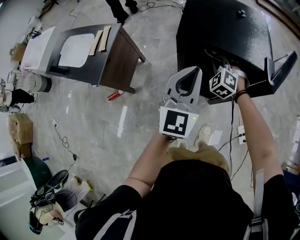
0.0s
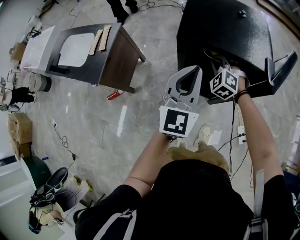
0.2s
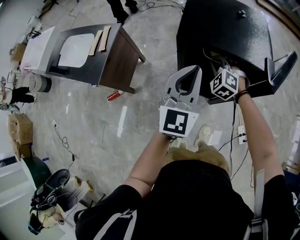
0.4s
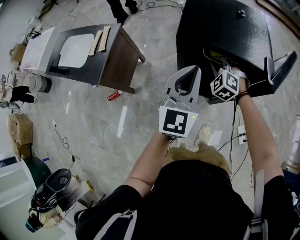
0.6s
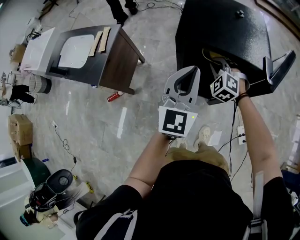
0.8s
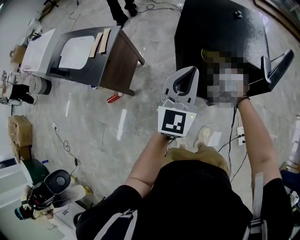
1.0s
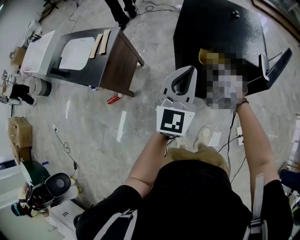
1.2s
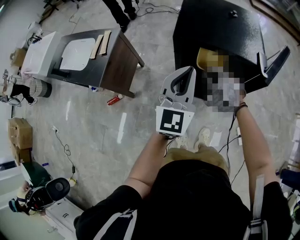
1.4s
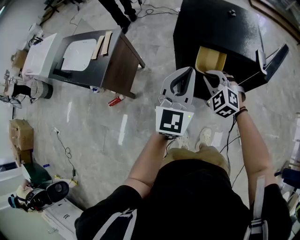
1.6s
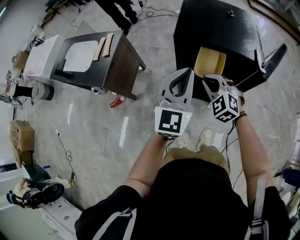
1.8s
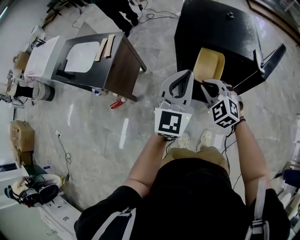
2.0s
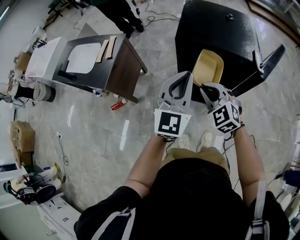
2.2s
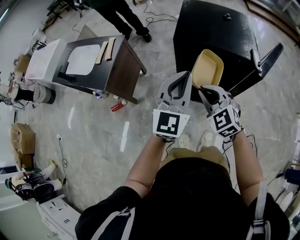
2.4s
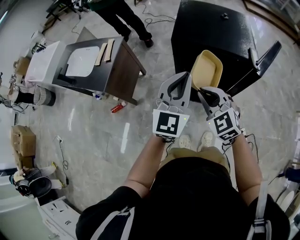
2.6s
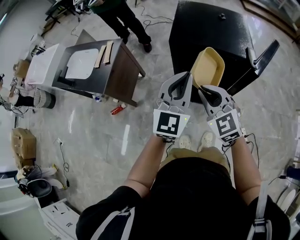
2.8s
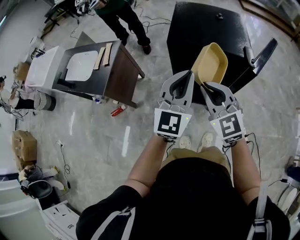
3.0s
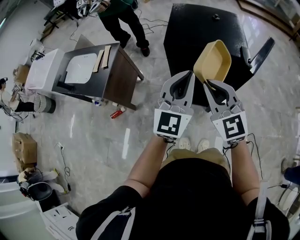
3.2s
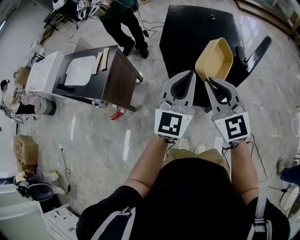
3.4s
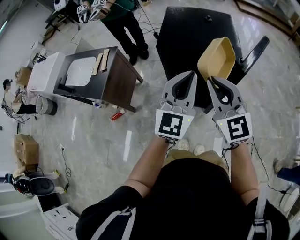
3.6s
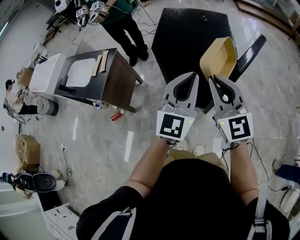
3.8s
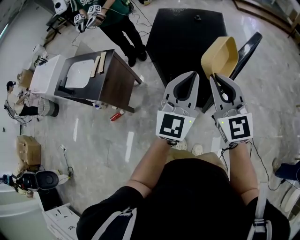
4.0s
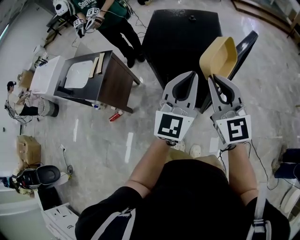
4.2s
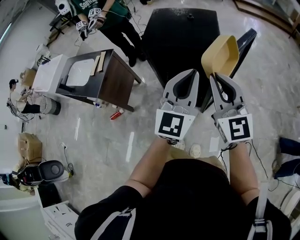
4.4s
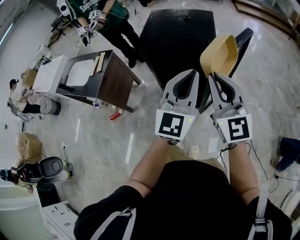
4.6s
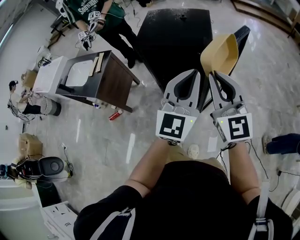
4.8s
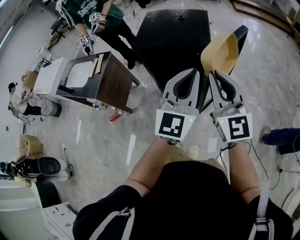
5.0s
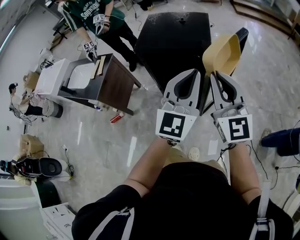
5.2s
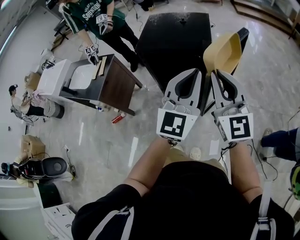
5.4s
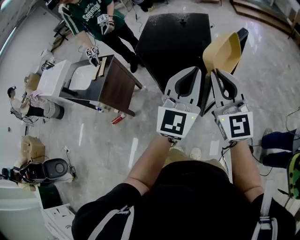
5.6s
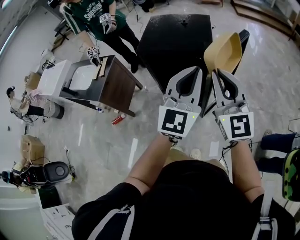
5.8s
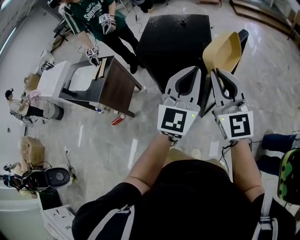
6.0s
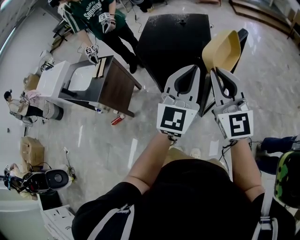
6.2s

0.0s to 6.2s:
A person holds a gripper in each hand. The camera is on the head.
0.0s to 1.6s: The right gripper is displaced backward by approximately 15 cm.
1.6s to 3.2s: The right gripper moves upward and backward, about 20 cm, and swivels roughly 40 degrees; the left gripper shifts by about 5 cm.
3.2s to 4.6s: Both grippers move to the right, approximately 20 cm.
4.6s to 6.2s: There are only small adjustments of the grippers.

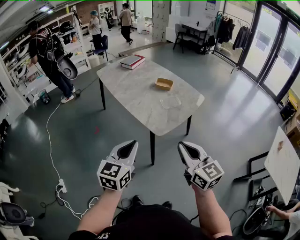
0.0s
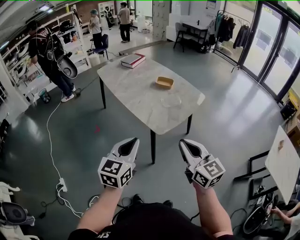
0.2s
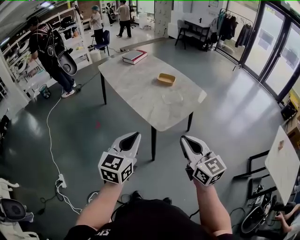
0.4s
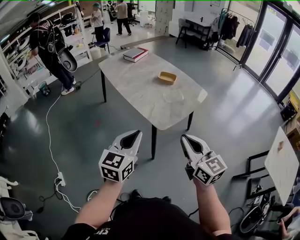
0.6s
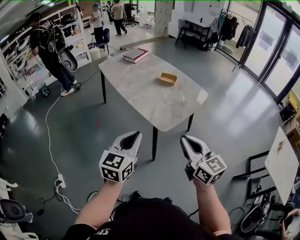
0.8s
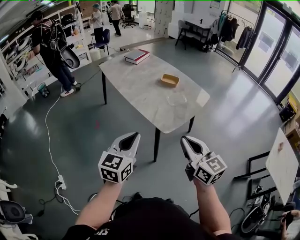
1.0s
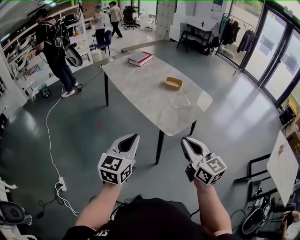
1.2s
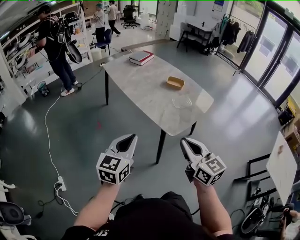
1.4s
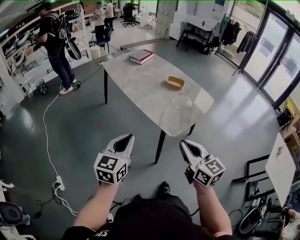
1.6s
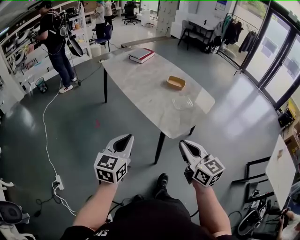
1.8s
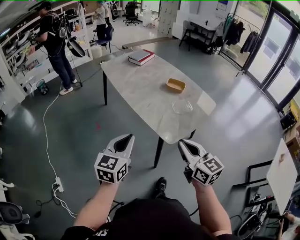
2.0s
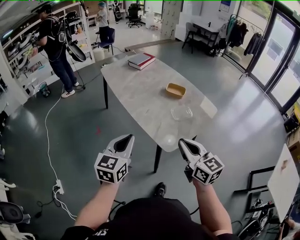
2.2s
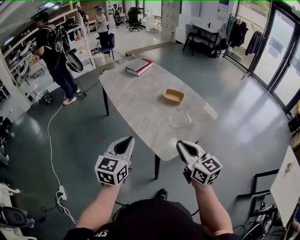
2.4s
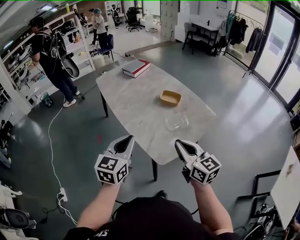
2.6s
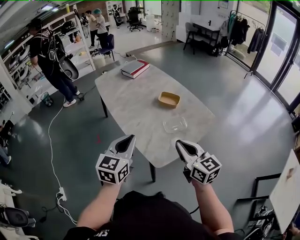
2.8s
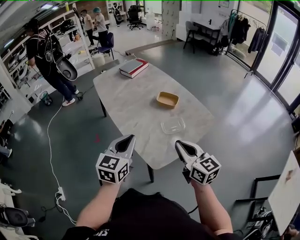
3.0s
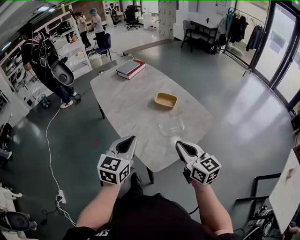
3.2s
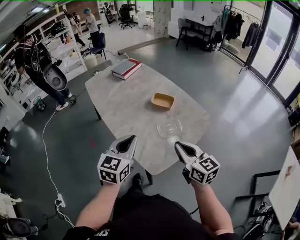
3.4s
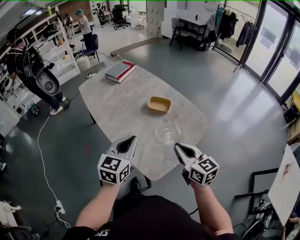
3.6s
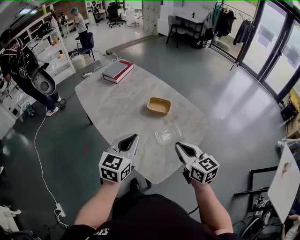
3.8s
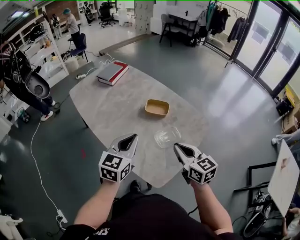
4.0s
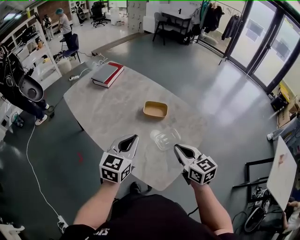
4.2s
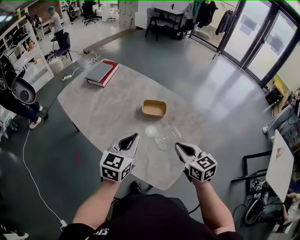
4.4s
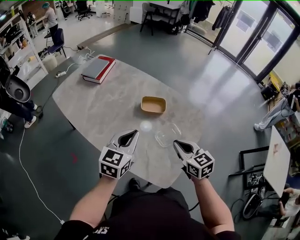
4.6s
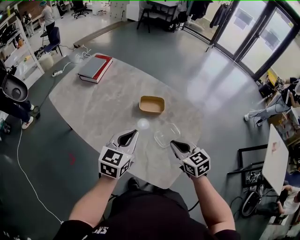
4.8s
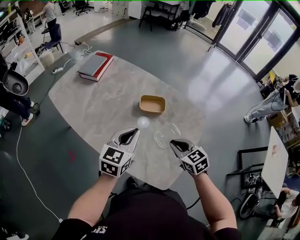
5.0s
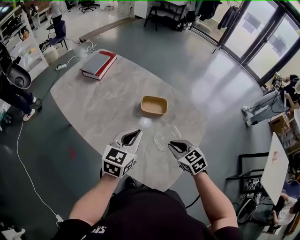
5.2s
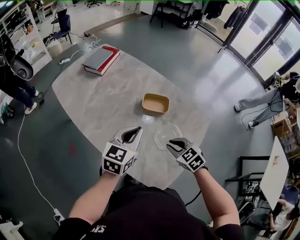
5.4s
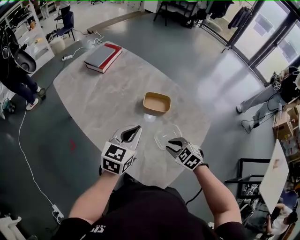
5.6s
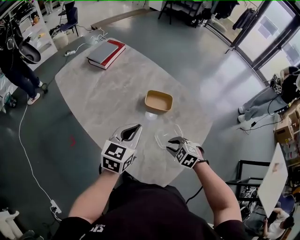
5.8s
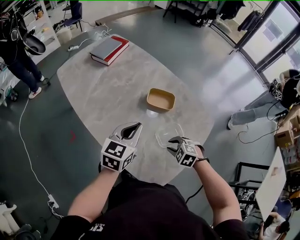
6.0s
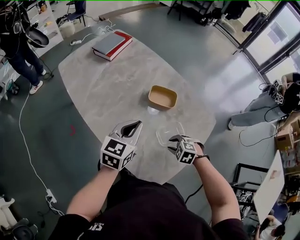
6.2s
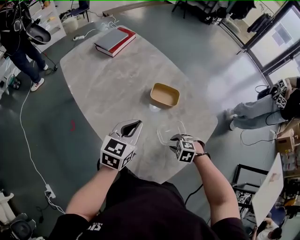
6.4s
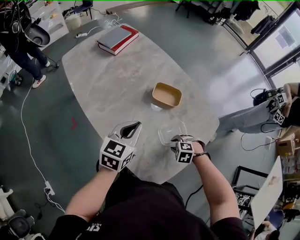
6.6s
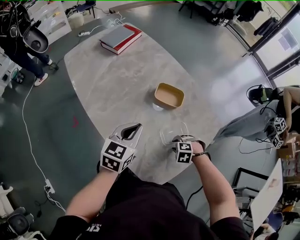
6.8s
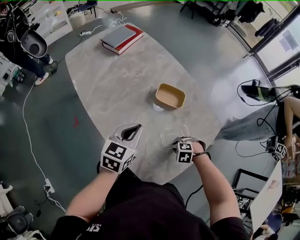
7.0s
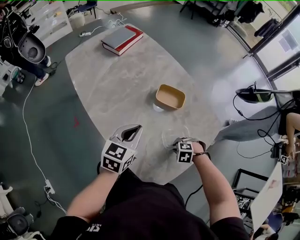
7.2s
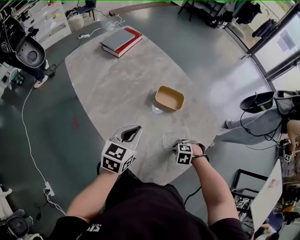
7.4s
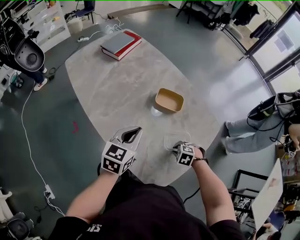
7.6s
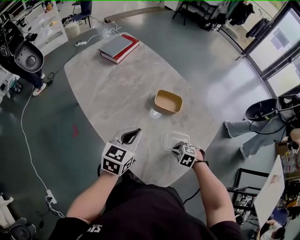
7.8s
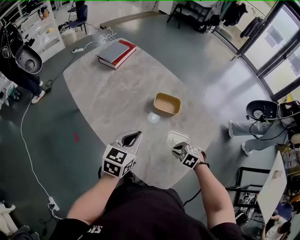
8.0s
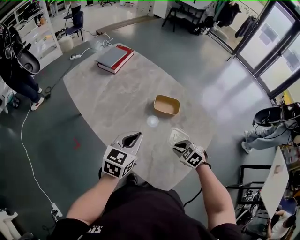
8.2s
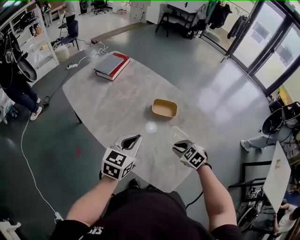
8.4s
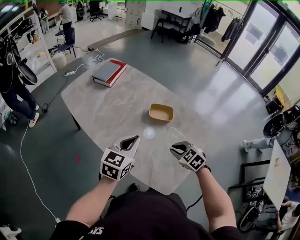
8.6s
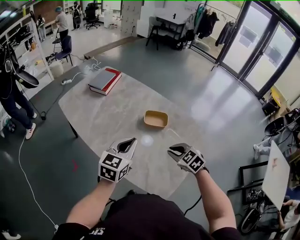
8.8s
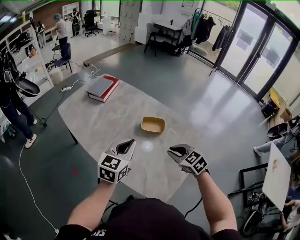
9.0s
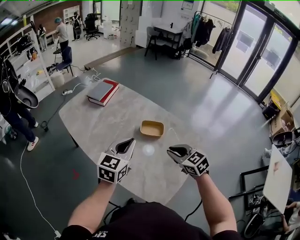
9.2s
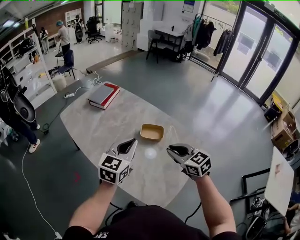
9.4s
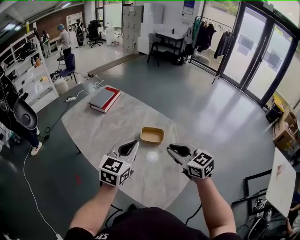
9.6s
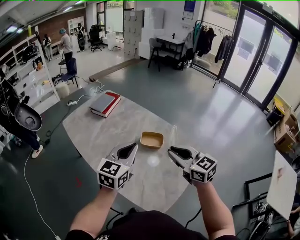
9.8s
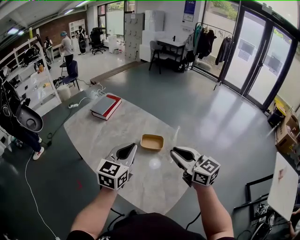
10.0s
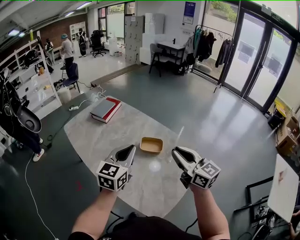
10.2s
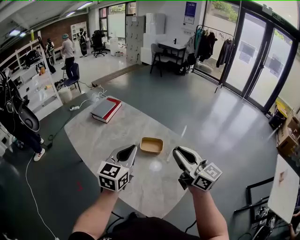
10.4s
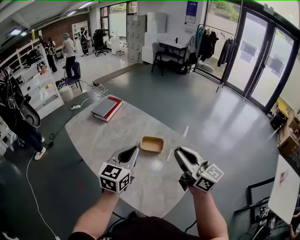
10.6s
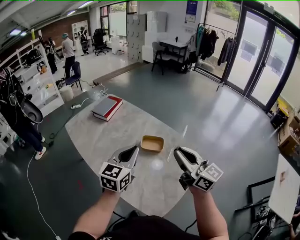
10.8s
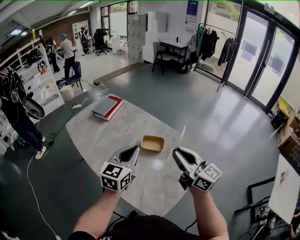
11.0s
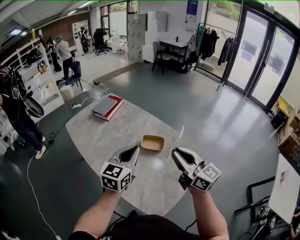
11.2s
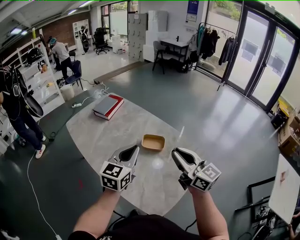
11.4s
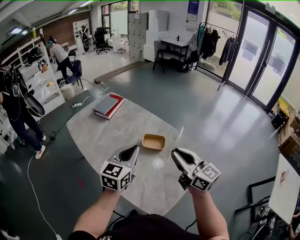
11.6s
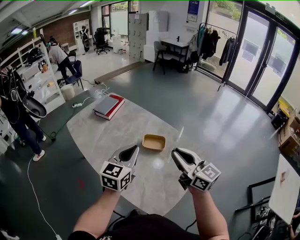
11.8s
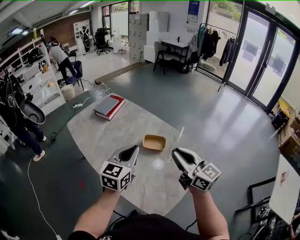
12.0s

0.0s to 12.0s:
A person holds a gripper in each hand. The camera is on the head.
0.0s to 1.6s: The left gripper goes roughly 15 cm to the left and forward. Meanwhile the right gripper is displaced to the left by about 10 cm.
1.6s to 3.0s: Both grippers move forward and to the right, about 25 cm.
3.0s to 4.4s: The right gripper travels forward and downward by about 15 cm, and swivels some 20 degrees. Meanwhile the left gripper travels forward by approximately 20 cm, and rotates approximately 20 degrees.
4.4s to 6.0s: The left gripper shifts about 10 cm forward and downward; the right gripper heads downward, covering roughly 20 cm, tips its fingers downward by some 40 degrees, and opens its fingers.
6.0s to 7.6s: The right gripper moves downward, about 5 cm.
7.6s to 9.0s: The right gripper shifts approximately 20 cm upward, and tilts its fingers approximately 40 degrees upward. The left gripper is displaced upward by some 10 cm.
9.0s to 10.4s: The right gripper heads upward, covering some 20 cm, and angles its fingers upward, by roughly 50 degrees; the left gripper is displaced upward by about 10 cm.
10.4s to 12.0s: The grippers move only a little.

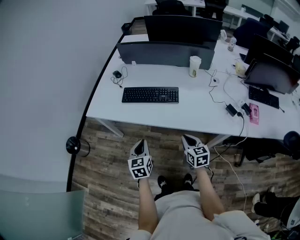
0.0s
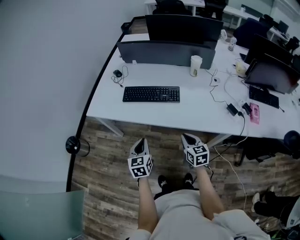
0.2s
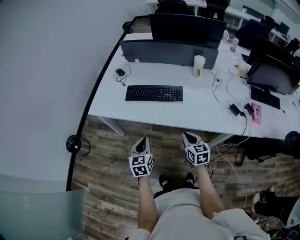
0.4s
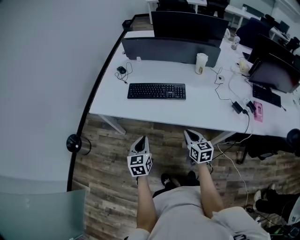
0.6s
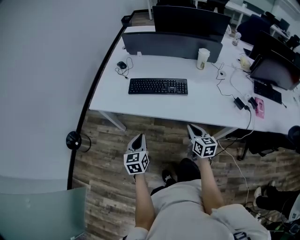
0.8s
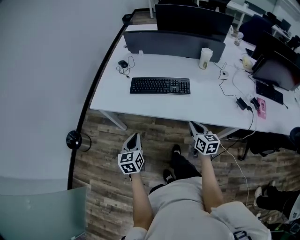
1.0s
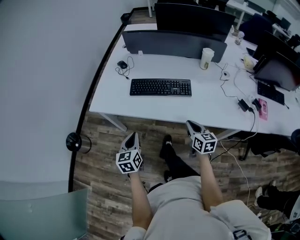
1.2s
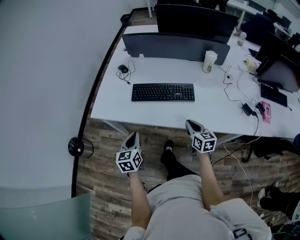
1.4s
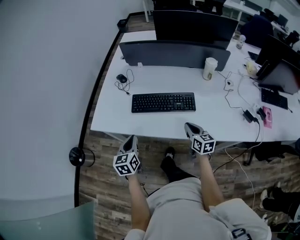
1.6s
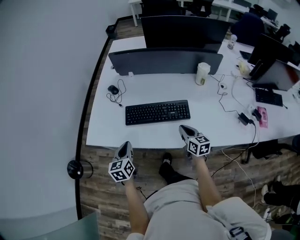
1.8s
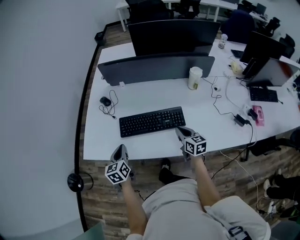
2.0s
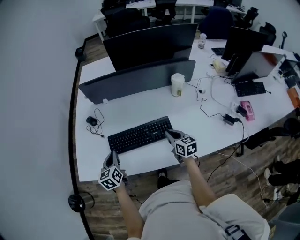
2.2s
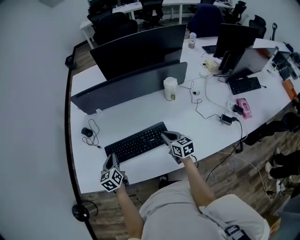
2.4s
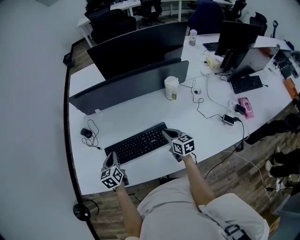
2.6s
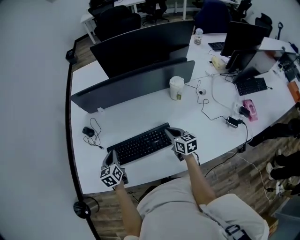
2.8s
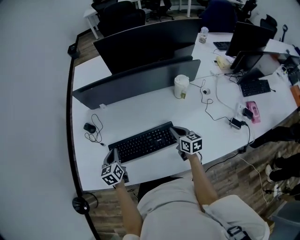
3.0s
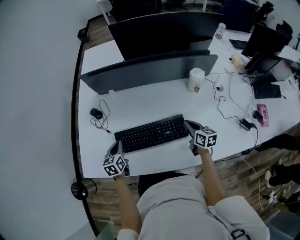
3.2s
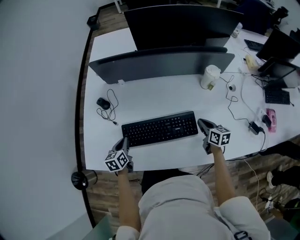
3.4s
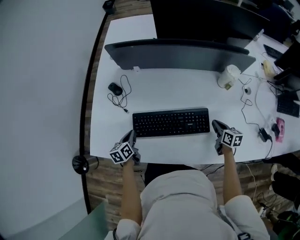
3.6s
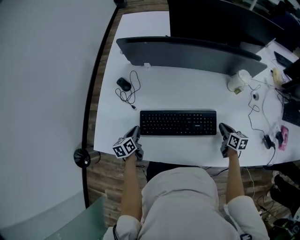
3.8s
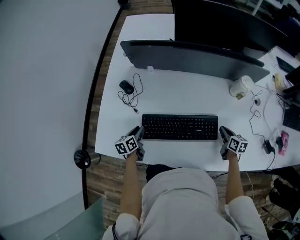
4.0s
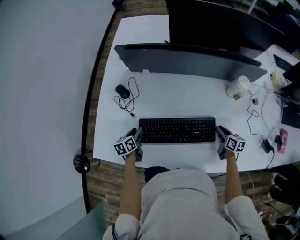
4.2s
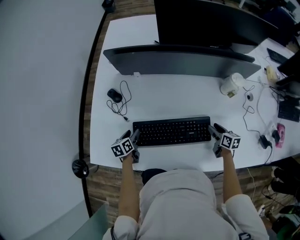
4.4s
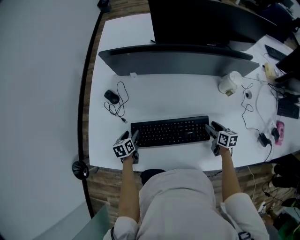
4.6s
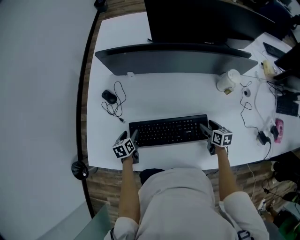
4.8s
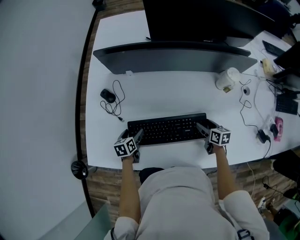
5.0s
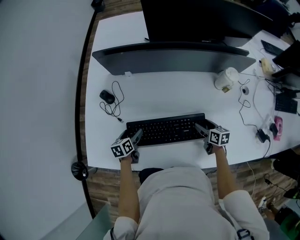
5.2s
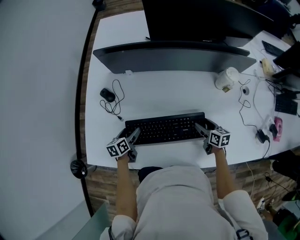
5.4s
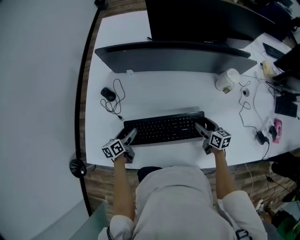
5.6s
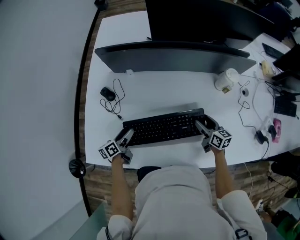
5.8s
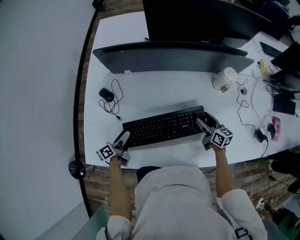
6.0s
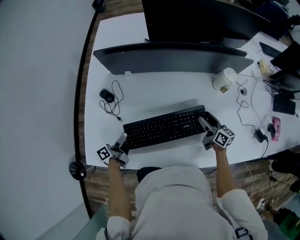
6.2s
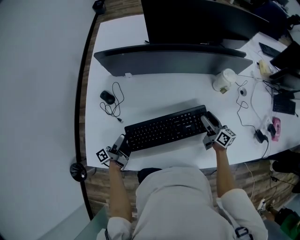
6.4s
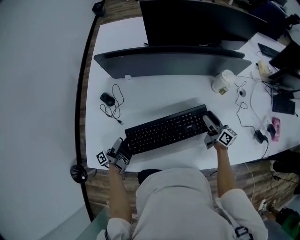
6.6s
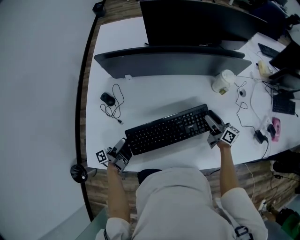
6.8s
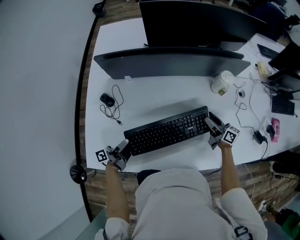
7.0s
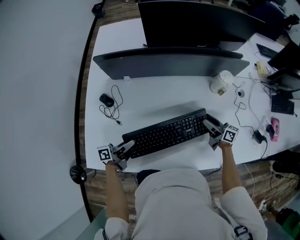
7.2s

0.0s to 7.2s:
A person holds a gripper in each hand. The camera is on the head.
0.0s to 1.4s: The right gripper heads forward and to the left, covering roughly 15 cm. Meanwhile the left gripper travels to the left and forward by about 15 cm.
1.4s to 2.8s: The two grippers go roughly 30 cm forward.
2.8s to 4.4s: The left gripper shifts approximately 20 cm downward and to the left, changes its angle by some 30 degrees, and opens its fingers. The right gripper is displaced downward by roughly 15 cm, and opens its fingers.
4.4s to 5.8s: The left gripper changes its angle by about 20 degrees, and opens up. The right gripper moves approximately 5 cm.
5.8s to 7.2s: The left gripper shifts approximately 10 cm upward and to the right, swivels approximately 30 degrees, and closes. Meanwhile the right gripper moves approximately 5 cm, and turns by some 20 degrees.
